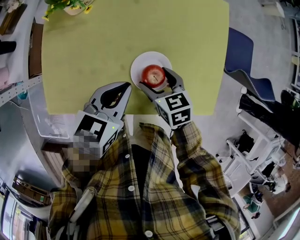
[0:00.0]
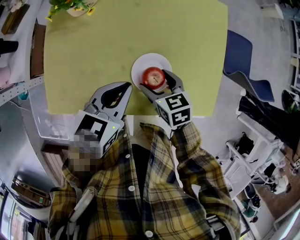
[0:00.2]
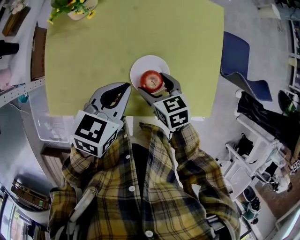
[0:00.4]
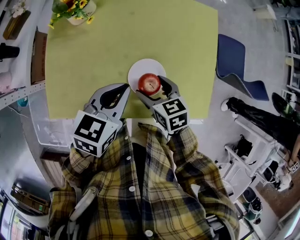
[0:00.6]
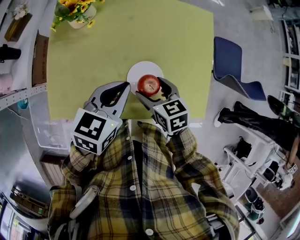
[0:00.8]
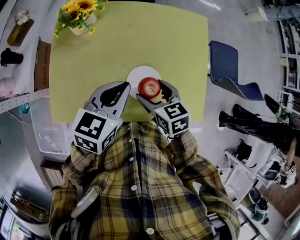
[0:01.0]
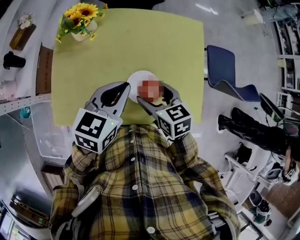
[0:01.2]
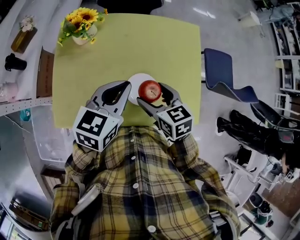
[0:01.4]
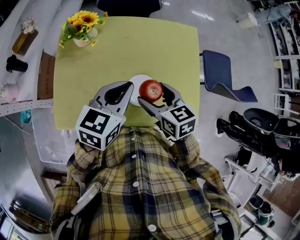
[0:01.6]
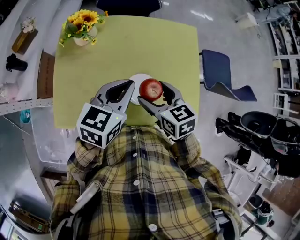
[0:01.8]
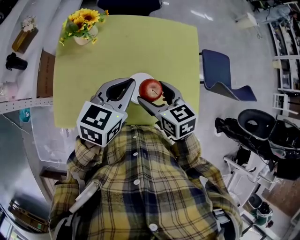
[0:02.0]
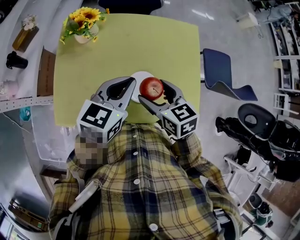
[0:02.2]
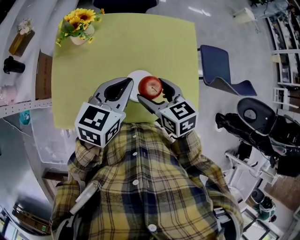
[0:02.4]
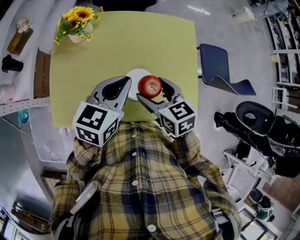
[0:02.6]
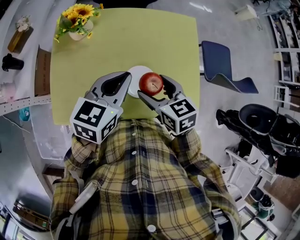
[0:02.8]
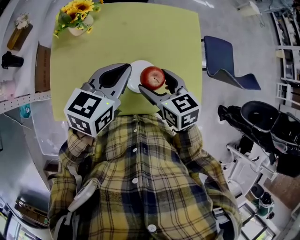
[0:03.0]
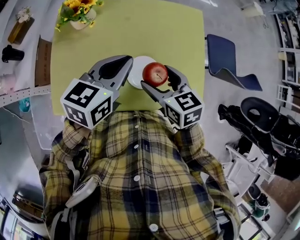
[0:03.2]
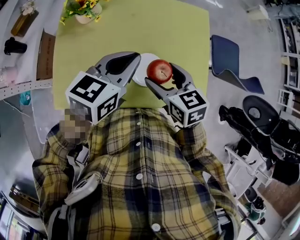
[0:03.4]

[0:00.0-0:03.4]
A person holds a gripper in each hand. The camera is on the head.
0.0 to 1.6 s: Both grippers travel together upward, approximately 15 cm.
1.6 to 3.4 s: The grippers stay close to where they were, moving slightly.

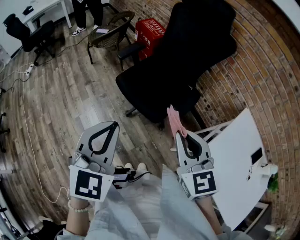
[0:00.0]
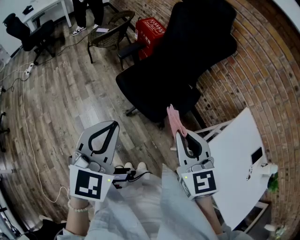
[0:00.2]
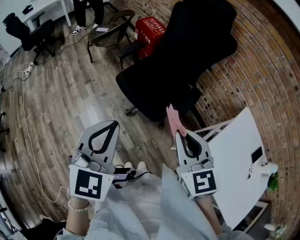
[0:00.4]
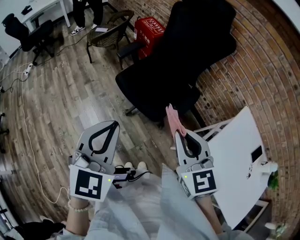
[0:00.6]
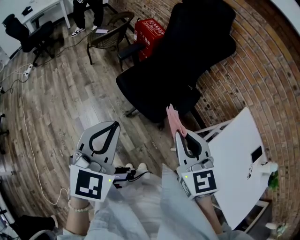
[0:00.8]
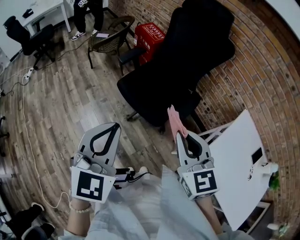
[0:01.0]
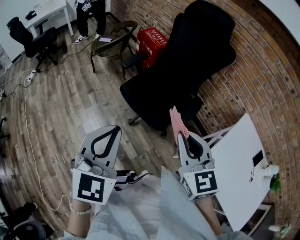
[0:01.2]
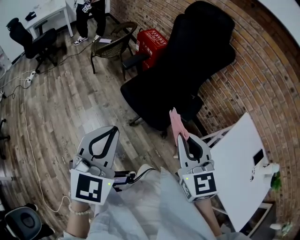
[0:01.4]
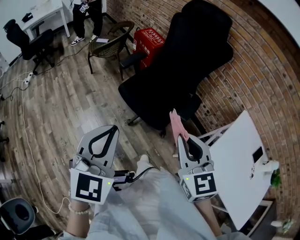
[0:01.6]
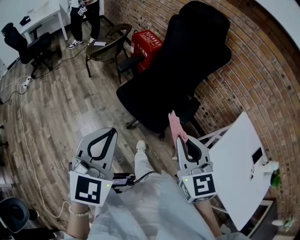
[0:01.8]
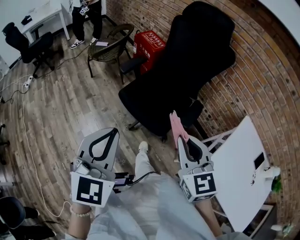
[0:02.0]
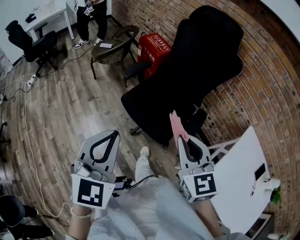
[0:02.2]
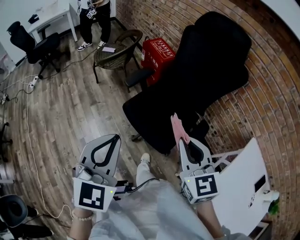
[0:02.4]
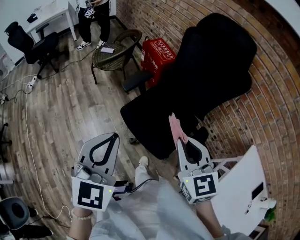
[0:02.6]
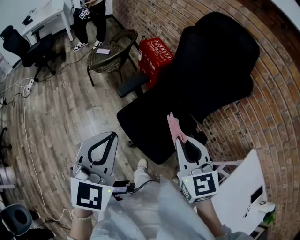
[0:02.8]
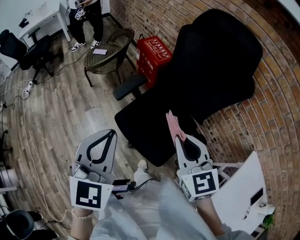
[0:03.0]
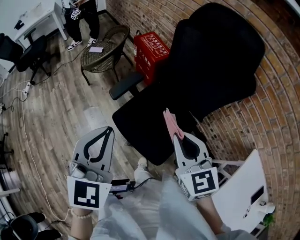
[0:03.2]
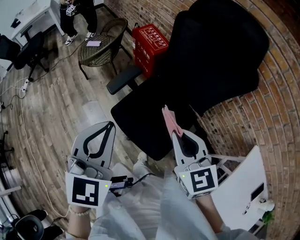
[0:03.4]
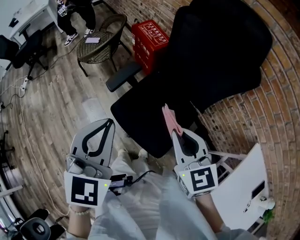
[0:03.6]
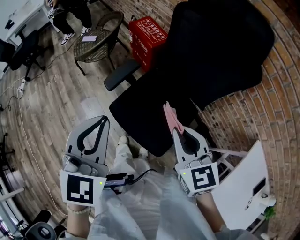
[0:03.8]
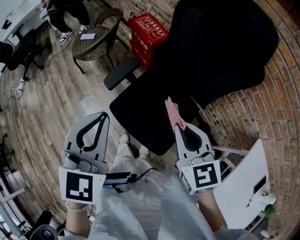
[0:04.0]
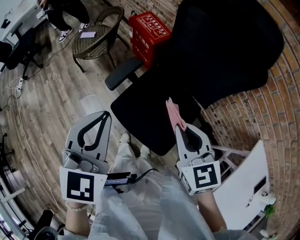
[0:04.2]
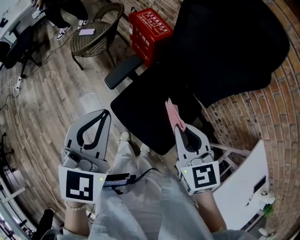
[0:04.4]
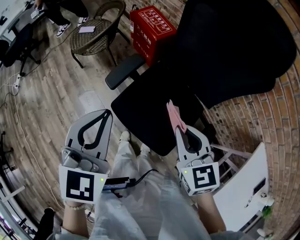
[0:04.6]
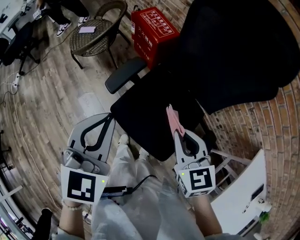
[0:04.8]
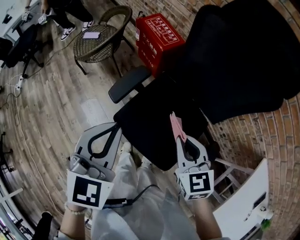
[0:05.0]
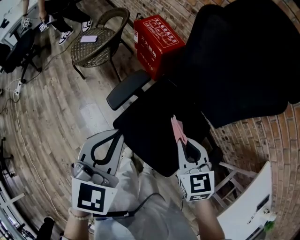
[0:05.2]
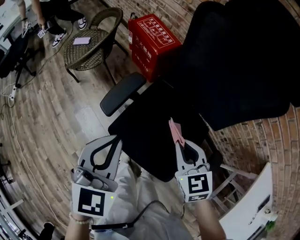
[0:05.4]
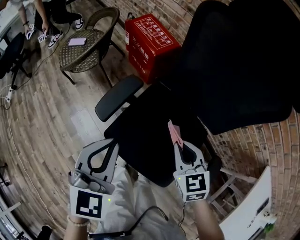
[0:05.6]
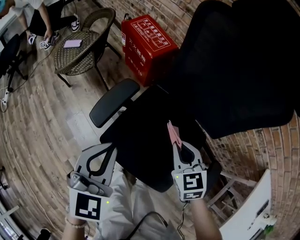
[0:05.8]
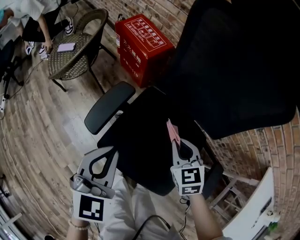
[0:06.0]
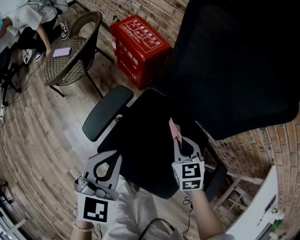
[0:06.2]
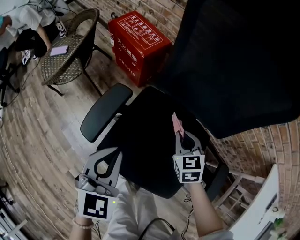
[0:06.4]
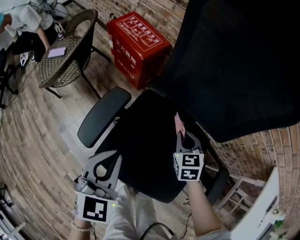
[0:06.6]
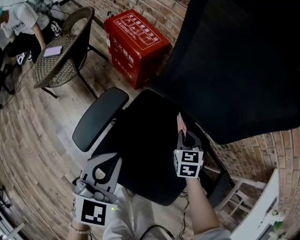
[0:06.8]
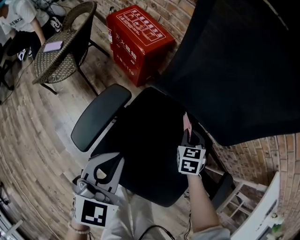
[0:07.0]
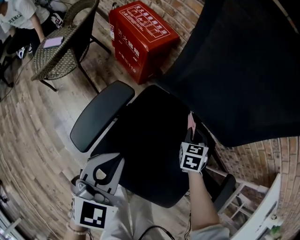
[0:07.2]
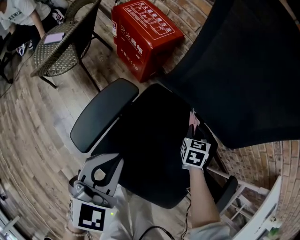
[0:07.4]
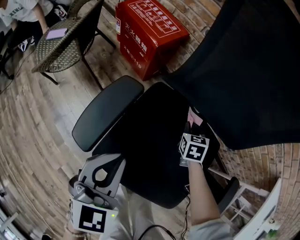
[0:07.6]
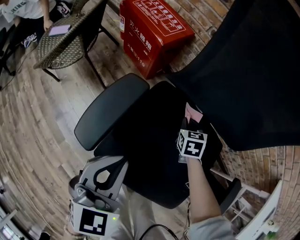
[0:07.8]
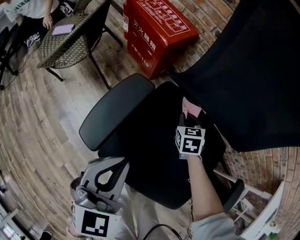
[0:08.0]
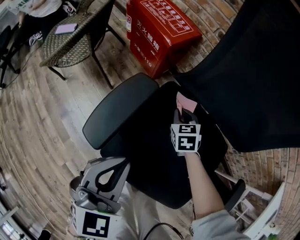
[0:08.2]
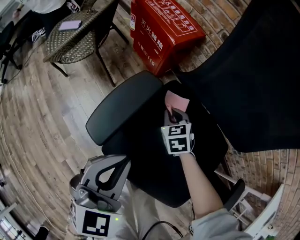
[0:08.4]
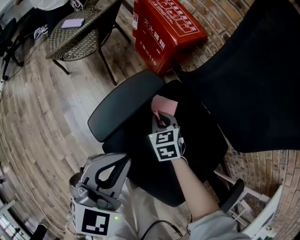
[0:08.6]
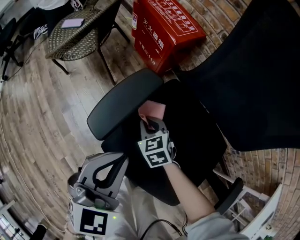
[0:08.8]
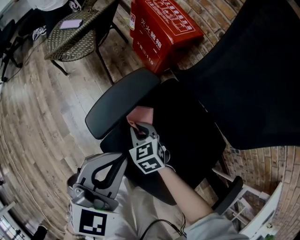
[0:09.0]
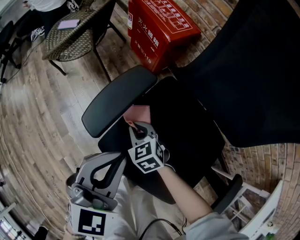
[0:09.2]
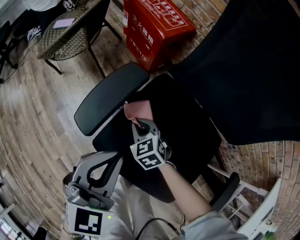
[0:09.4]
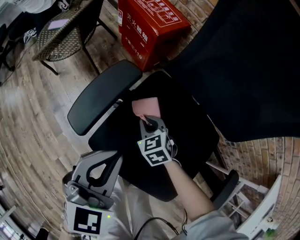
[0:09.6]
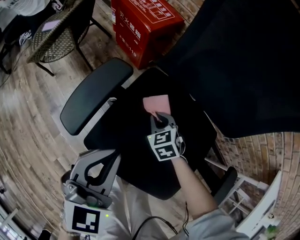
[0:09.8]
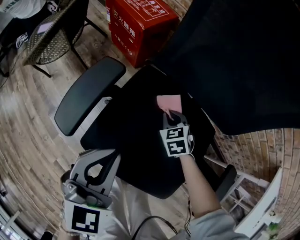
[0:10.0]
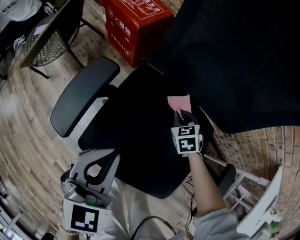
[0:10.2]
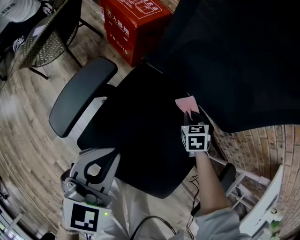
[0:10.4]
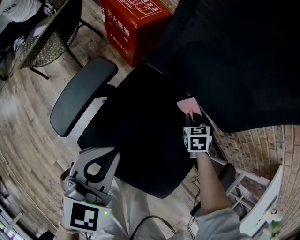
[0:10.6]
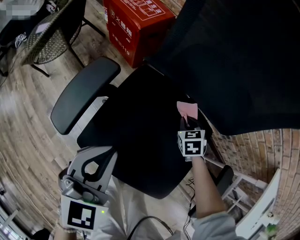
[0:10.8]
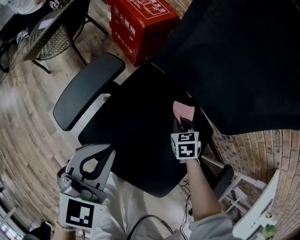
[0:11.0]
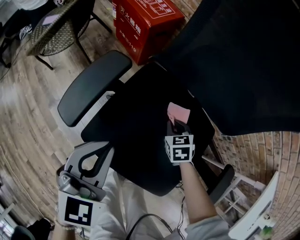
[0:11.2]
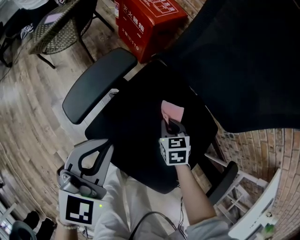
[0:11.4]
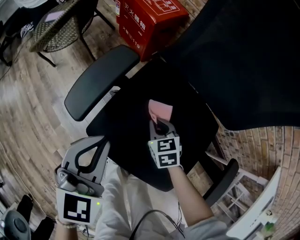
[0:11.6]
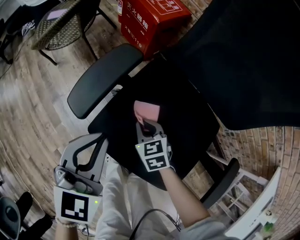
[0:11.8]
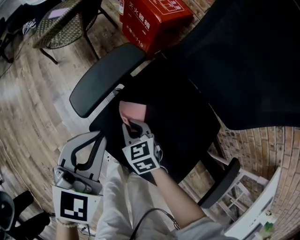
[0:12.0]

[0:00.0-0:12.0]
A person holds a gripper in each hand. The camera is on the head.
0.0 to 1.6 s: The left gripper shifts some 5 cm to the left.
1.6 to 3.0 s: Both grippers travel together forward, some 30 cm.
3.0 to 4.4 s: The left gripper travels forward by about 10 cm. Meanwhile the right gripper is displaced forward and downward by some 10 cm.
4.4 to 6.0 s: The grippers both shift downward and forward by roughly 25 cm.
6.0 to 7.6 s: The left gripper shifts some 10 cm downward; the right gripper travels downward and forward by about 25 cm, and swivels approximately 30 degrees.
7.6 to 9.0 s: The right gripper moves some 30 cm, and turns by roughly 50 degrees.
9.0 to 10.4 s: The left gripper moves some 10 cm. The right gripper ends up roughly 35 cm from where it was, and swivels roughly 40 degrees.
10.4 to 12.0 s: The right gripper changes place by approximately 35 cm, and swivels about 30 degrees; the left gripper shifts by about 10 cm.

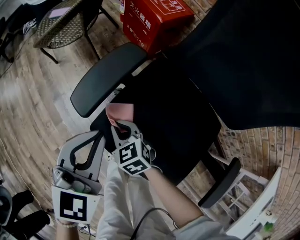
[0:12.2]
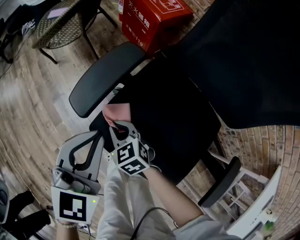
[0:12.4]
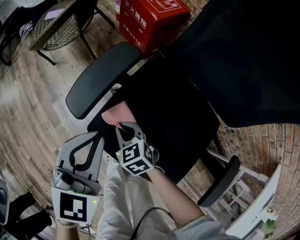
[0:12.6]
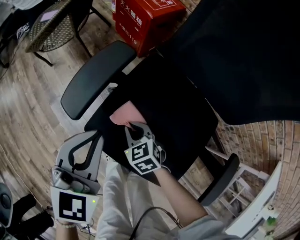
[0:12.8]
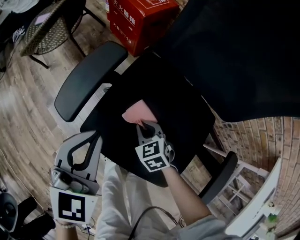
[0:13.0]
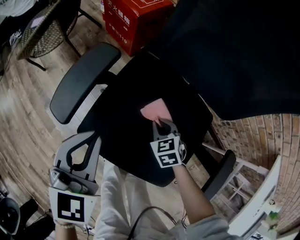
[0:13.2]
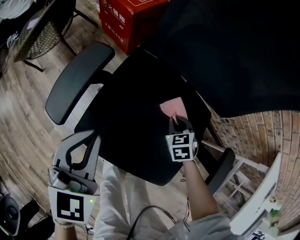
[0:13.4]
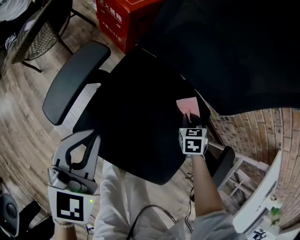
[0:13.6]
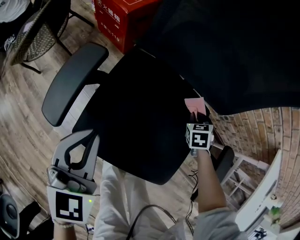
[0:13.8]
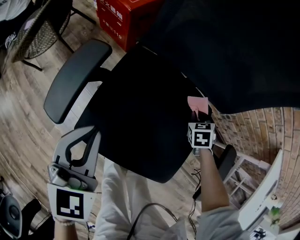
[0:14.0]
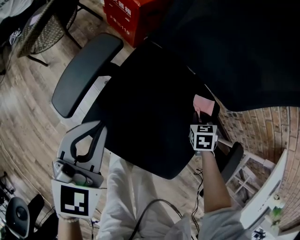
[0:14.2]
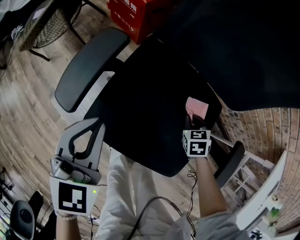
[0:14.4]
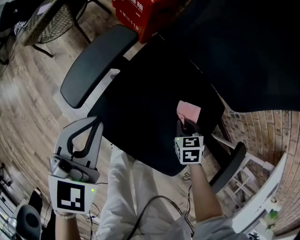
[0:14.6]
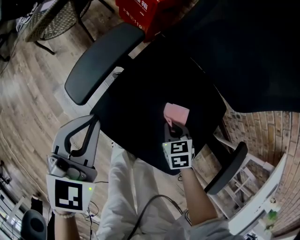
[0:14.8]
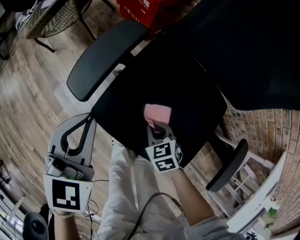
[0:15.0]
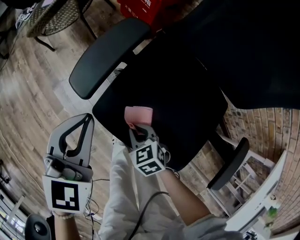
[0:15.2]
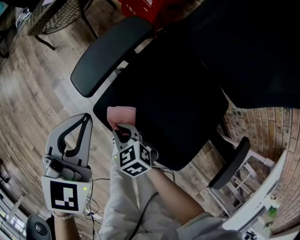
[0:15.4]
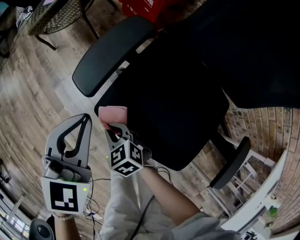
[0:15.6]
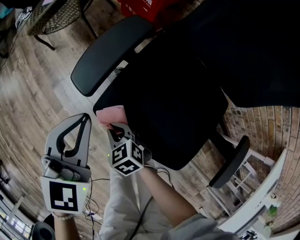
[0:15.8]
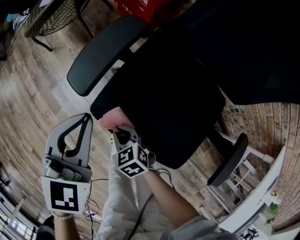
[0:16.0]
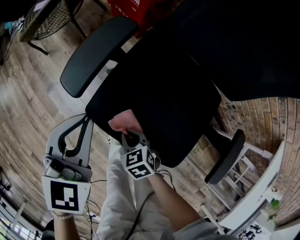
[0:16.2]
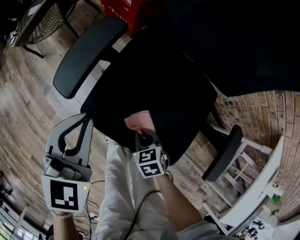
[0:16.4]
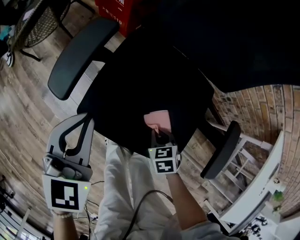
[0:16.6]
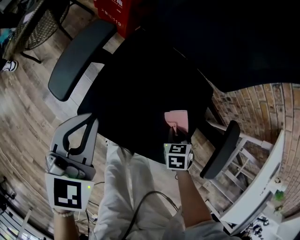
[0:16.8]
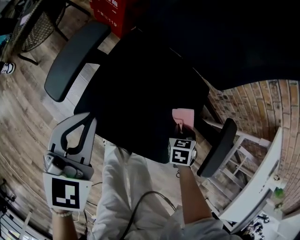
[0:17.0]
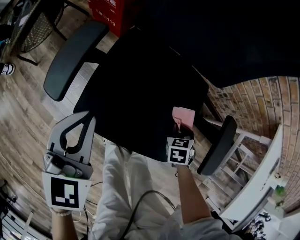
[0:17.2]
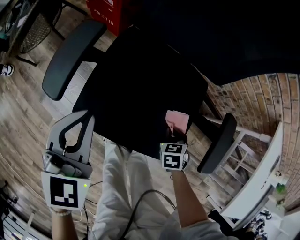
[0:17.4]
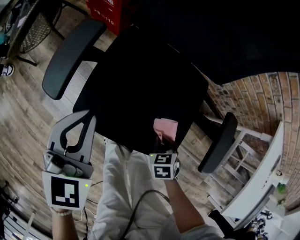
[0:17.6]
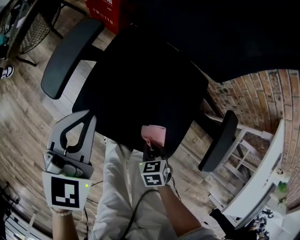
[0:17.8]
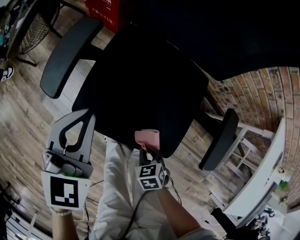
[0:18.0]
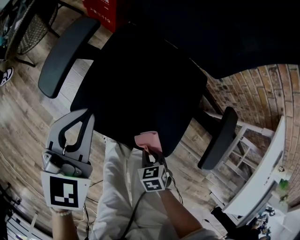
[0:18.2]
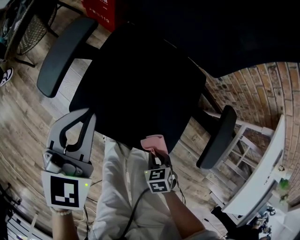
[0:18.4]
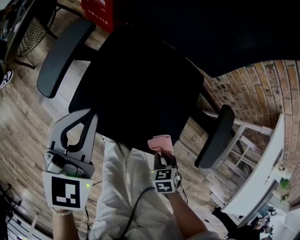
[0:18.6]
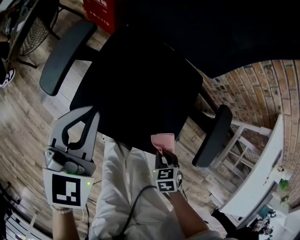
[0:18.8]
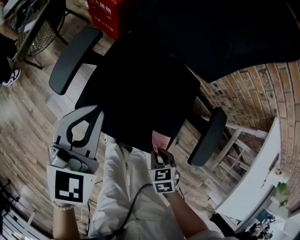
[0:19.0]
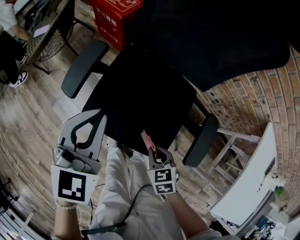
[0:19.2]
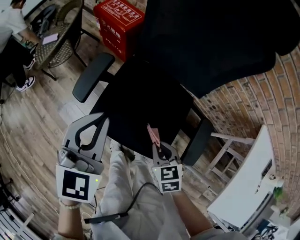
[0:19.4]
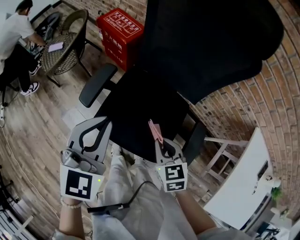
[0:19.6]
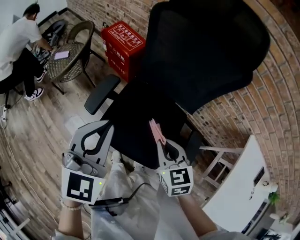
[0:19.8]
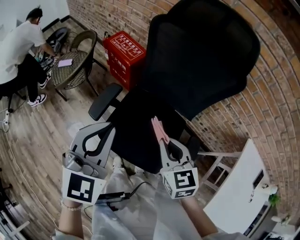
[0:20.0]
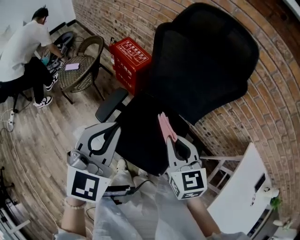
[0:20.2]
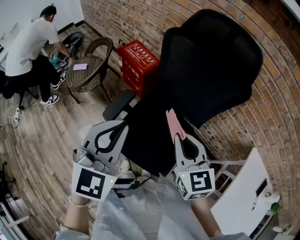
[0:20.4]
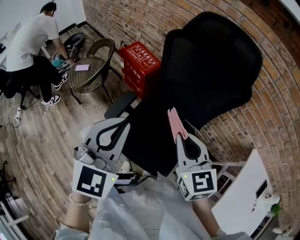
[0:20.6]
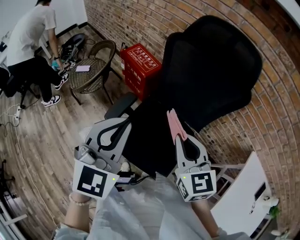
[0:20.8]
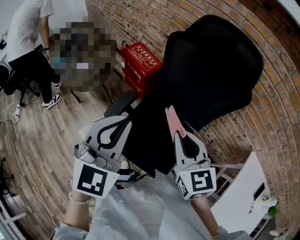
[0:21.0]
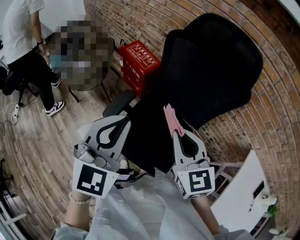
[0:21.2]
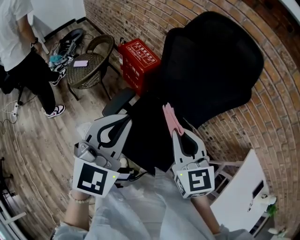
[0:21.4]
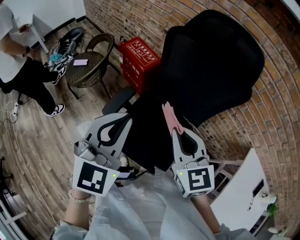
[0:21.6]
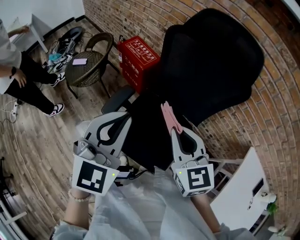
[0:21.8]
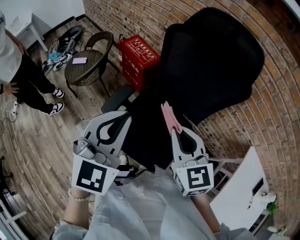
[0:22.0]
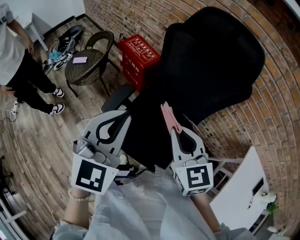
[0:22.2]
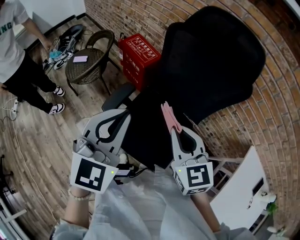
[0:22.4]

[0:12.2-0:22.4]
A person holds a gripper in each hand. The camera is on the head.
12.2 to 13.6 s: The right gripper shifts by some 40 cm, and changes its angle by approximately 50 degrees; the left gripper moves roughly 5 cm.
13.6 to 15.2 s: The right gripper changes place by about 35 cm, and swivels some 40 degrees. Meanwhile the left gripper shifts by some 10 cm.
15.2 to 16.6 s: The left gripper shifts by about 5 cm. The right gripper ends up approximately 15 cm from where it was, and swivels roughly 30 degrees.
16.6 to 18.0 s: The right gripper moves backward, some 10 cm.
18.0 to 19.4 s: The two grippers go about 20 cm upward. The right gripper swivels roughly 20 degrees.
19.4 to 21.0 s: The right gripper travels upward by roughly 35 cm, and points its fingers about 30 degrees further upward, while the left gripper travels upward by approximately 20 cm.
21.0 to 22.4 s: The grippers stay close to where they were, moving slightly.
